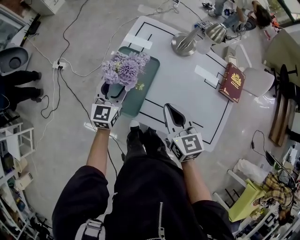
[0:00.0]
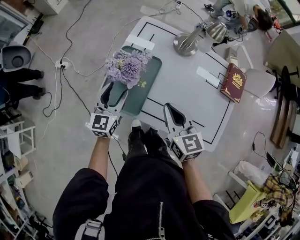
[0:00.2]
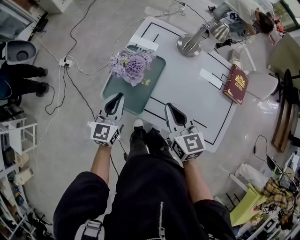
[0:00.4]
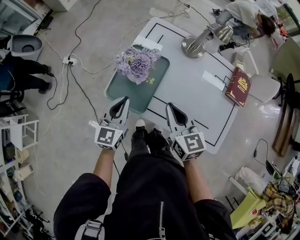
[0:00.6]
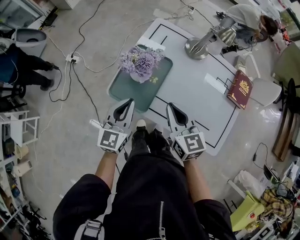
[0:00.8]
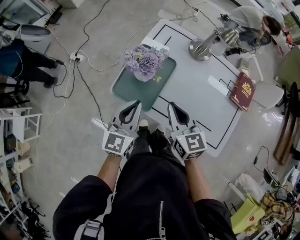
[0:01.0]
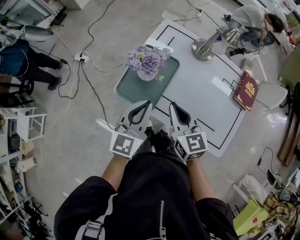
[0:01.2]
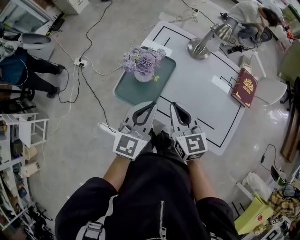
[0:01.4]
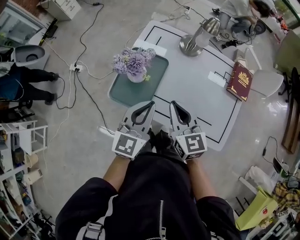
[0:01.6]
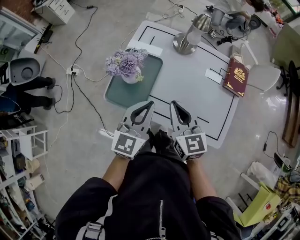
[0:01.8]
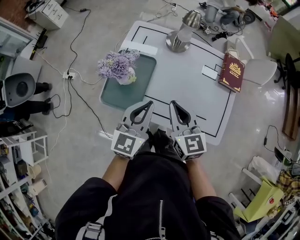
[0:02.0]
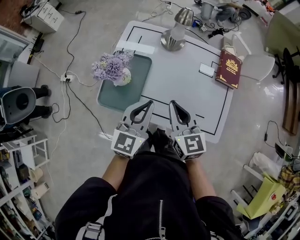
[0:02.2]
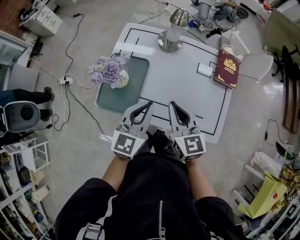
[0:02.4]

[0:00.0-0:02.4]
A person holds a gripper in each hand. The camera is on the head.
0:00.0 to 0:01.2: The left gripper heads backward and upward, covering about 15 cm, and closes. The right gripper changes place by approximately 5 cm.
0:01.2 to 0:02.4: The two grippers go some 10 cm to the right.

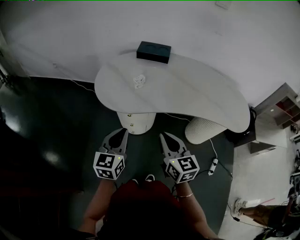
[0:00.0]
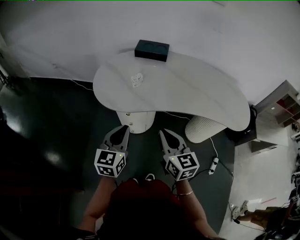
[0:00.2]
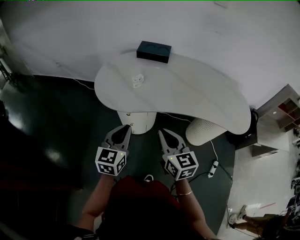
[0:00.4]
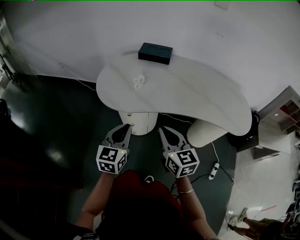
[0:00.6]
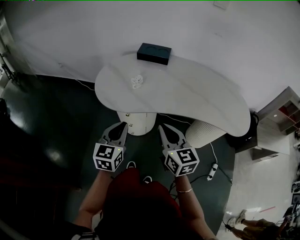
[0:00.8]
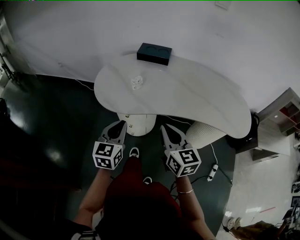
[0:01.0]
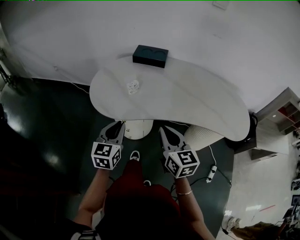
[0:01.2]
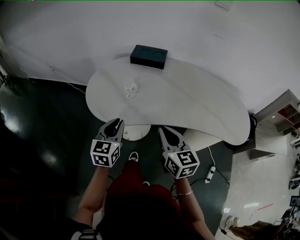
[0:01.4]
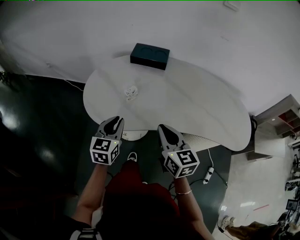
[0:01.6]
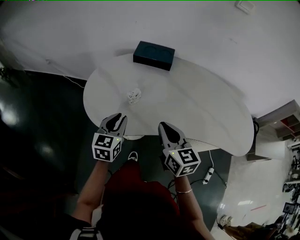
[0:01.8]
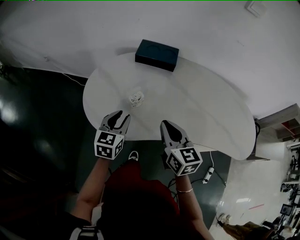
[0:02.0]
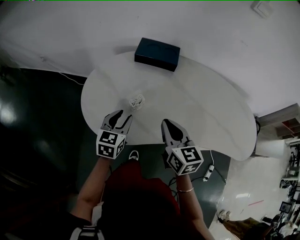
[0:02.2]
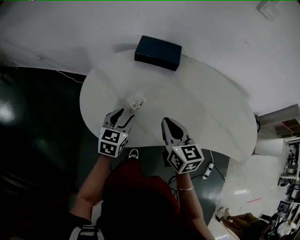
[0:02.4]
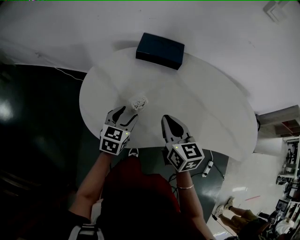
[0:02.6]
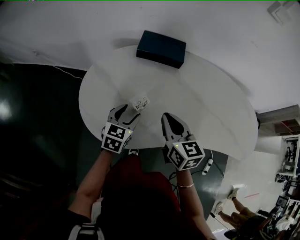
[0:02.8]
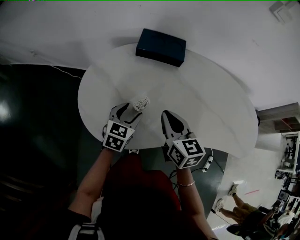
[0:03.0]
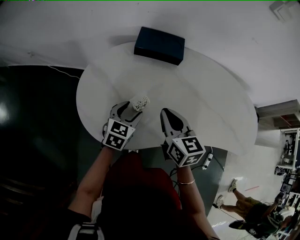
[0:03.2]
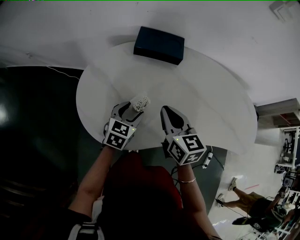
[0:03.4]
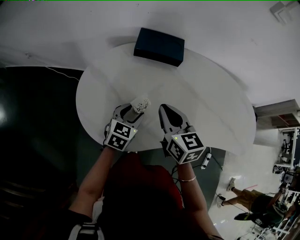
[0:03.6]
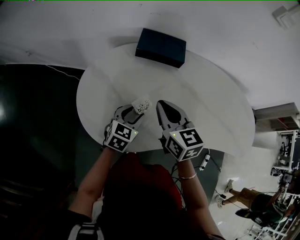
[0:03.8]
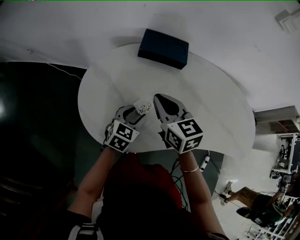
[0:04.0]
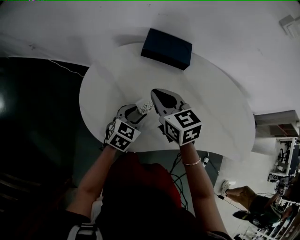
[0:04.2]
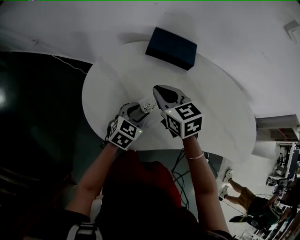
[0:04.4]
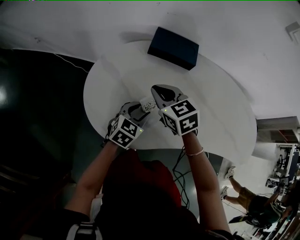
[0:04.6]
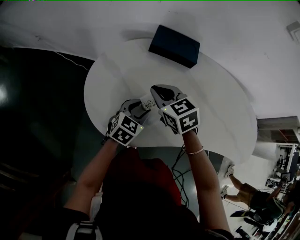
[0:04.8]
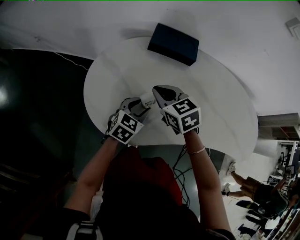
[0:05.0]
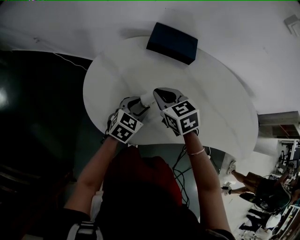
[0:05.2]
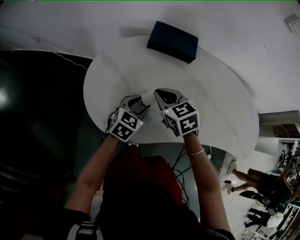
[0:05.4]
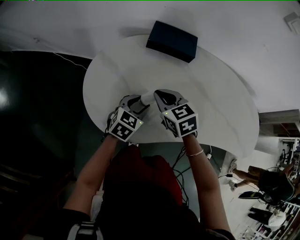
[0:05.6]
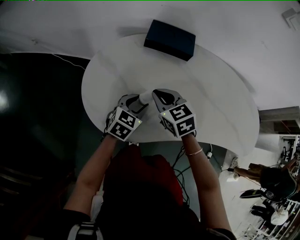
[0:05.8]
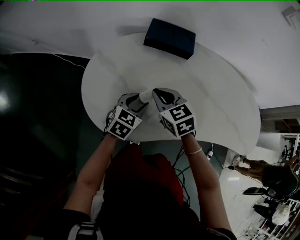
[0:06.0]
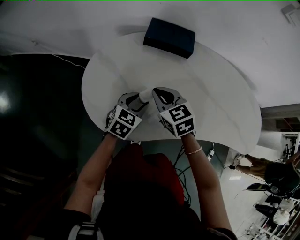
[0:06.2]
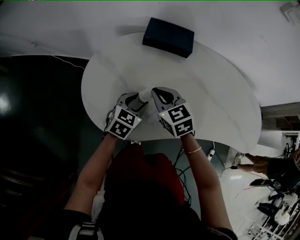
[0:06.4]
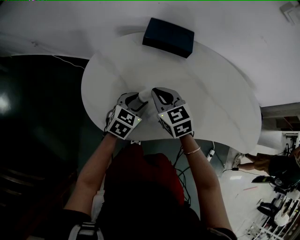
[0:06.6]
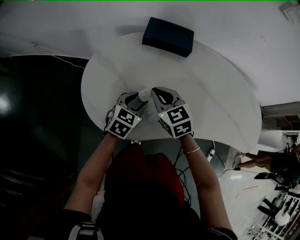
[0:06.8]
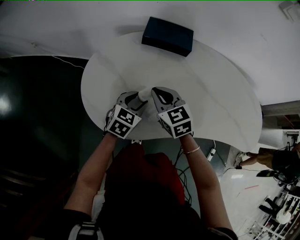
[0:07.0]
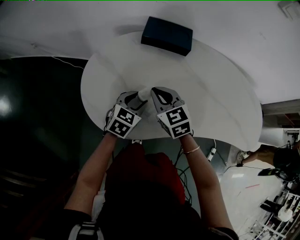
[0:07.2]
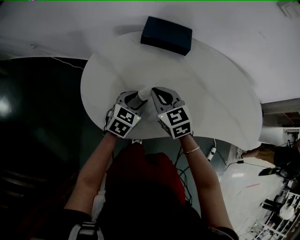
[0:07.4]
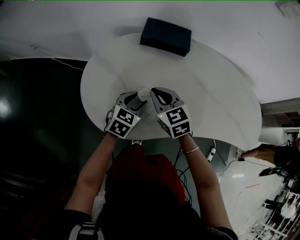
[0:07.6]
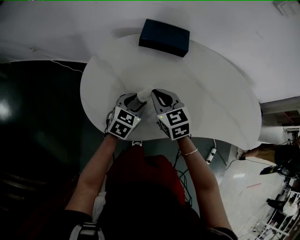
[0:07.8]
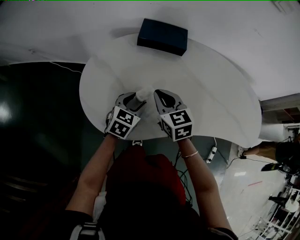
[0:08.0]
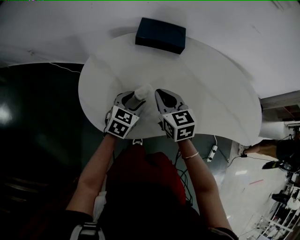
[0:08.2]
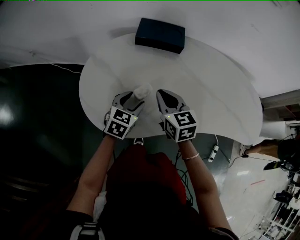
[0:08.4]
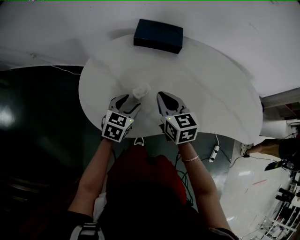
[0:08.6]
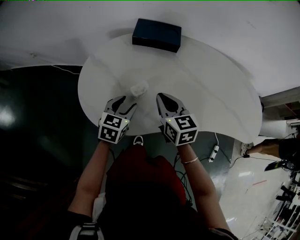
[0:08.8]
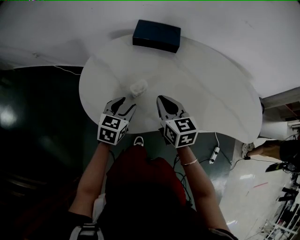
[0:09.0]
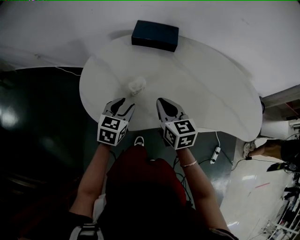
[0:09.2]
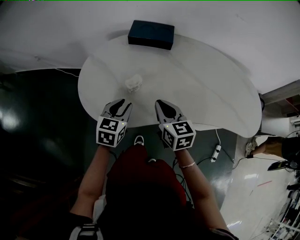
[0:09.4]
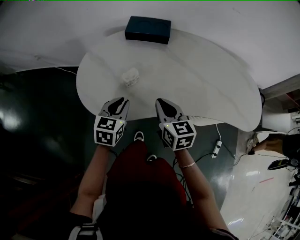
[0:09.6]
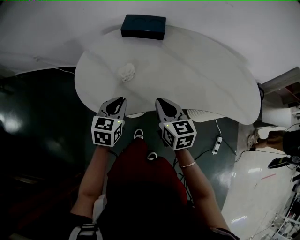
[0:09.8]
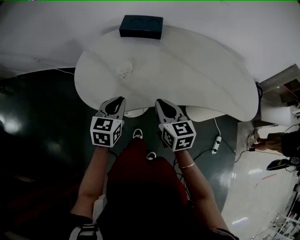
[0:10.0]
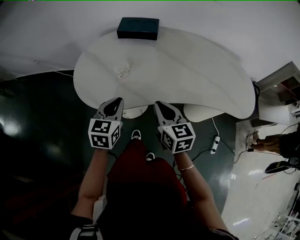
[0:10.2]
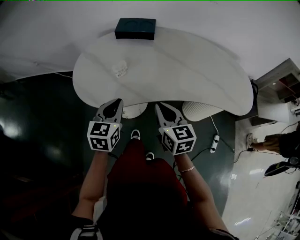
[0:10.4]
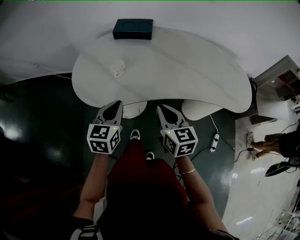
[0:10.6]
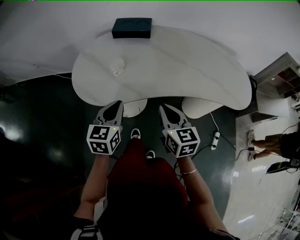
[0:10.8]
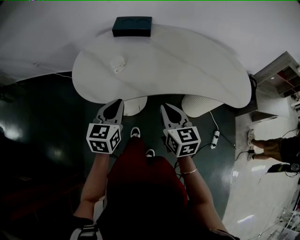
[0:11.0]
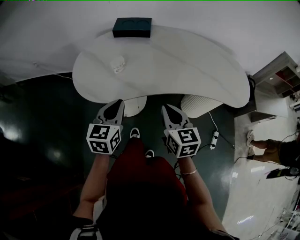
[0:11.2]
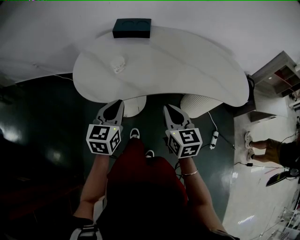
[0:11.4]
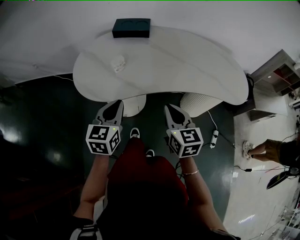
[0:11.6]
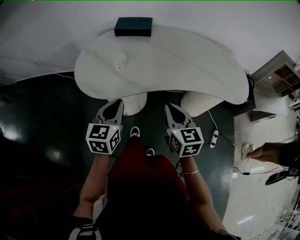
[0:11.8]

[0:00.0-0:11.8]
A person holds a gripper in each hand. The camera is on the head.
0:00.0 to 0:01.4: The right gripper heads forward and to the right, covering roughly 10 cm, while the left gripper goes some 10 cm forward.
0:01.4 to 0:03.0: The left gripper goes some 25 cm forward and downward, turns by about 20 degrees, and opens its fingers. Meanwhile the right gripper travels forward by roughly 20 cm.
0:03.0 to 0:04.4: The right gripper heads to the left and forward, covering about 10 cm, and swivels approximately 30 degrees.
0:04.4 to 0:06.0: The right gripper travels downward by approximately 5 cm.
0:06.0 to 0:07.4: The grippers make only small movements.
0:07.4 to 0:08.8: The right gripper is displaced to the right by about 5 cm, and changes its angle by about 20 degrees.
0:08.8 to 0:10.4: The right gripper shifts roughly 20 cm backward and to the right. The left gripper heads backward and upward, covering about 15 cm, and closes up.
0:10.4 to 0:11.8: The two grippers go about 5 cm backward.

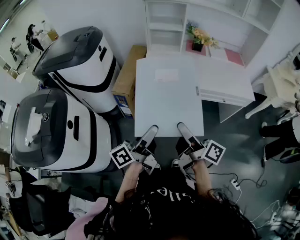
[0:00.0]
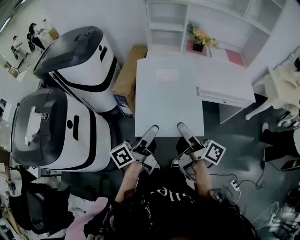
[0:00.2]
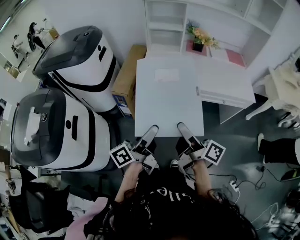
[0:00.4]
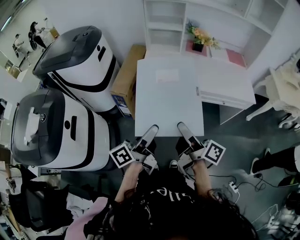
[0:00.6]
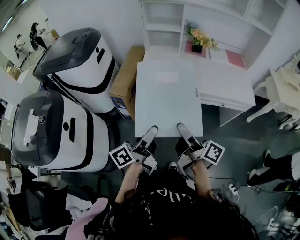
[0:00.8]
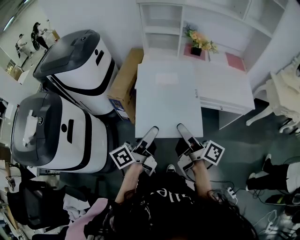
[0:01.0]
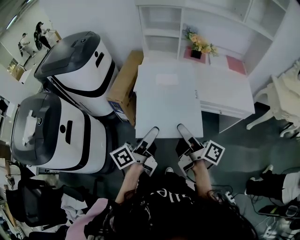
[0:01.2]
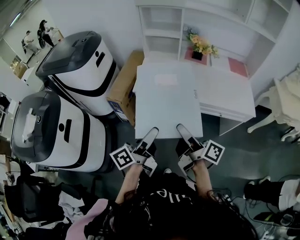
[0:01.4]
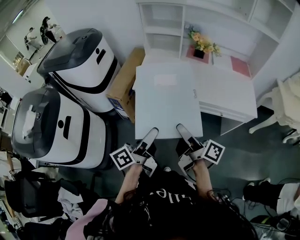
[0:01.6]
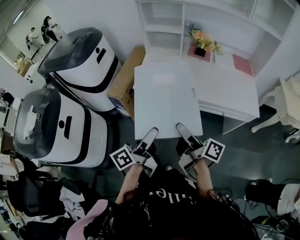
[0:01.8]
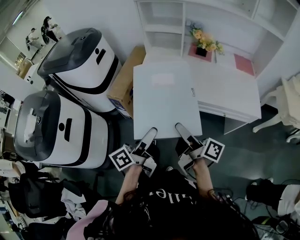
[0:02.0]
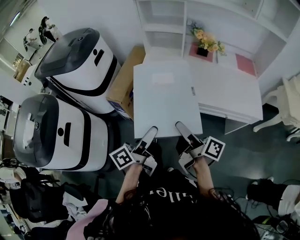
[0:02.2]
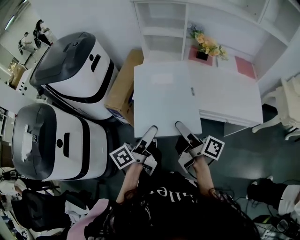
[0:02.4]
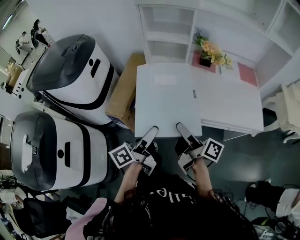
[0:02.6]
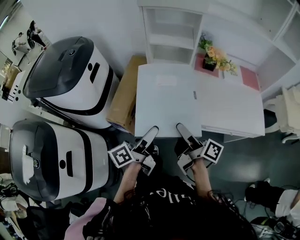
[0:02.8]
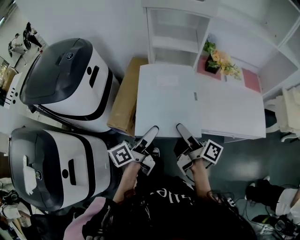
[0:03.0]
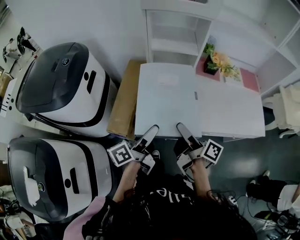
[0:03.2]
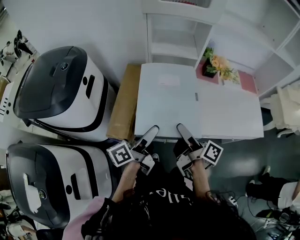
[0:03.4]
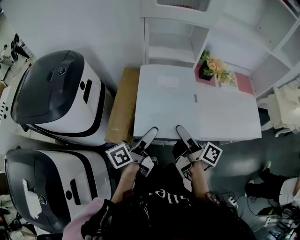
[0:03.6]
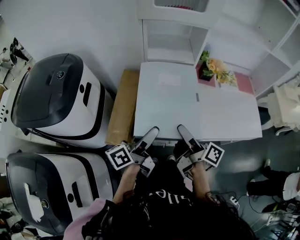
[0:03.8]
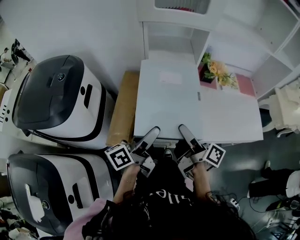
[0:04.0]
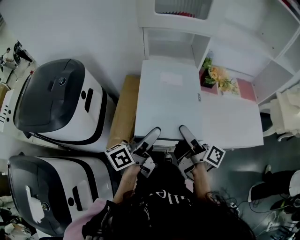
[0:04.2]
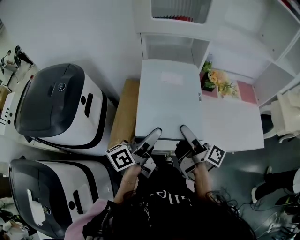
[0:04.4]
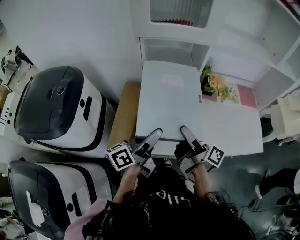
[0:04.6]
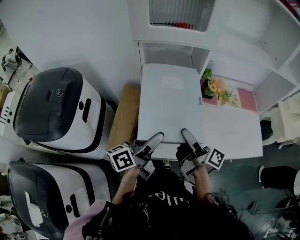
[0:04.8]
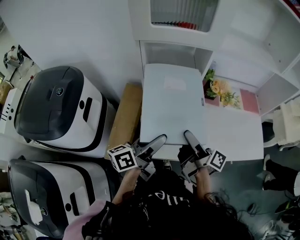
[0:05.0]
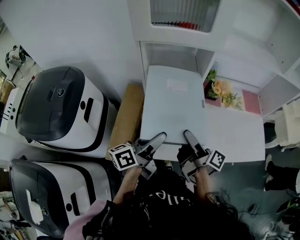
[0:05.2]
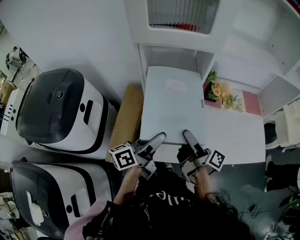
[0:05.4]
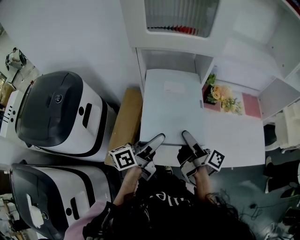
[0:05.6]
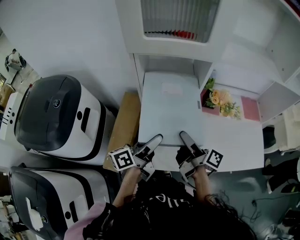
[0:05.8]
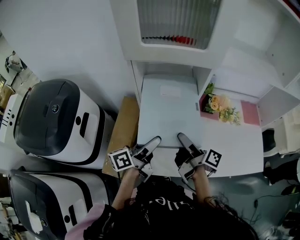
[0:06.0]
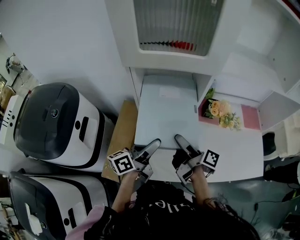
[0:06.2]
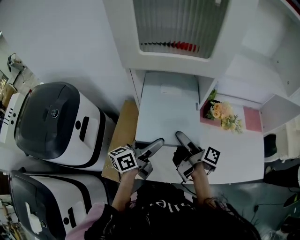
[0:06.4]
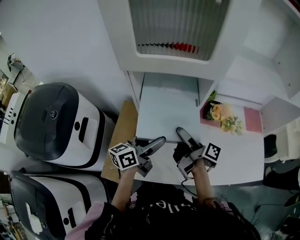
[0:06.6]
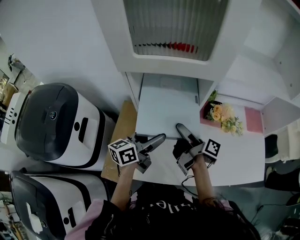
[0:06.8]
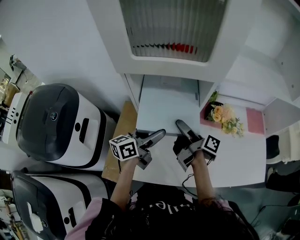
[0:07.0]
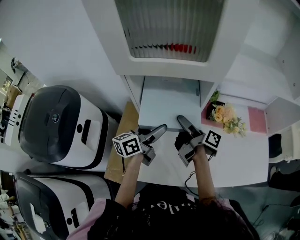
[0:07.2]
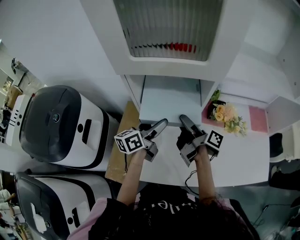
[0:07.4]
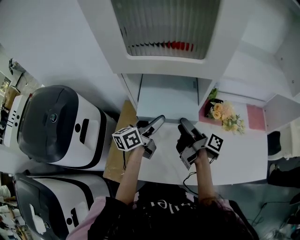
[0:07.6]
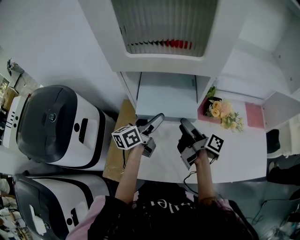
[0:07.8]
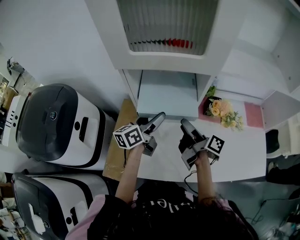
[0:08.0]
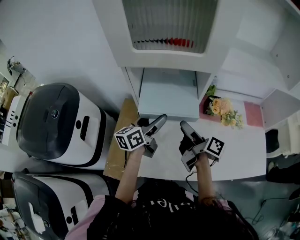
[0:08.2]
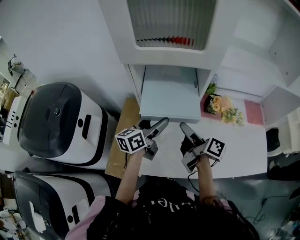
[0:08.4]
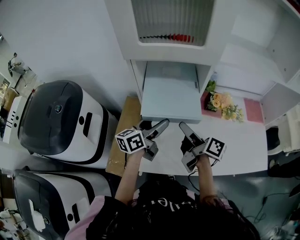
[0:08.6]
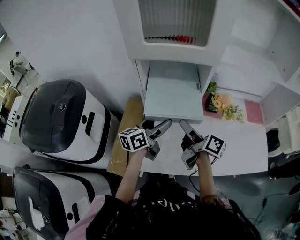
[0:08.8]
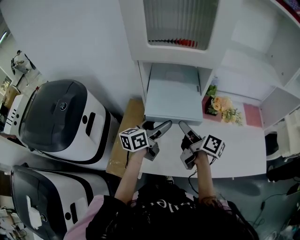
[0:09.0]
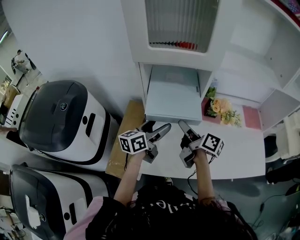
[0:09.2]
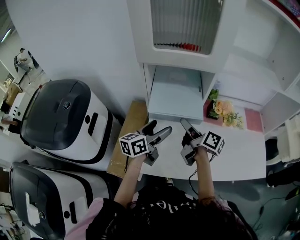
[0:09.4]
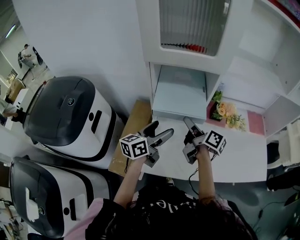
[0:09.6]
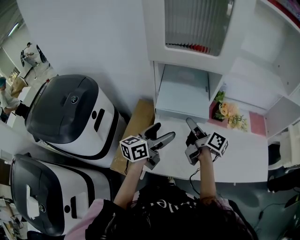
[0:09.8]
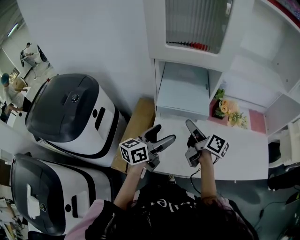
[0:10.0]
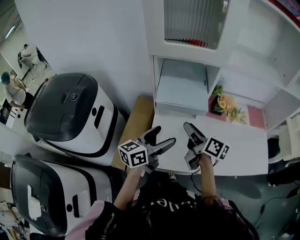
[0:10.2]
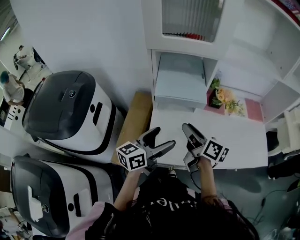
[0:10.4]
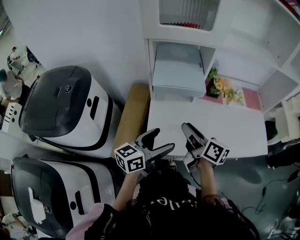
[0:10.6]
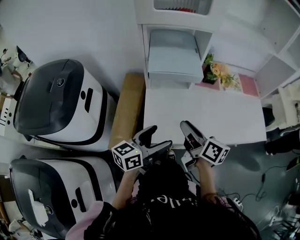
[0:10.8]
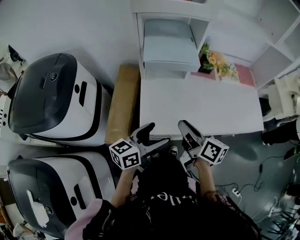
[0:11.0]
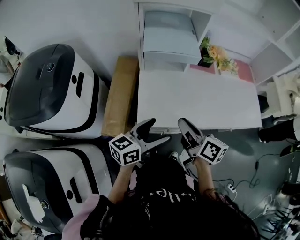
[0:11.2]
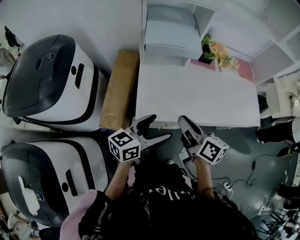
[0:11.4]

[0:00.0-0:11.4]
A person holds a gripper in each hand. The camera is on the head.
0:00.0 to 0:01.4: The grippers both shift to the right and forward by some 15 cm.
0:01.4 to 0:02.8: Both grippers move forward, about 25 cm.
0:02.8 to 0:04.2: The grippers both shift forward by approximately 15 cm.
0:04.2 to 0:05.6: The two grippers go some 10 cm forward.
0:05.6 to 0:07.2: The grippers both shift forward by roughly 15 cm.
0:07.2 to 0:08.6: The right gripper goes approximately 10 cm backward, and changes its angle by some 20 degrees; the left gripper ends up some 5 cm from where it was.
0:08.6 to 0:10.0: The left gripper shifts about 10 cm backward.
0:10.0 to 0:11.4: Both grippers travel together backward, some 20 cm. The right gripper closes its fingers.
